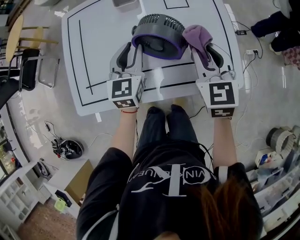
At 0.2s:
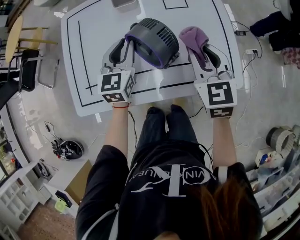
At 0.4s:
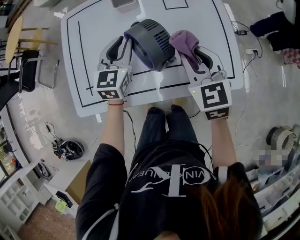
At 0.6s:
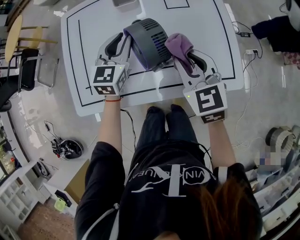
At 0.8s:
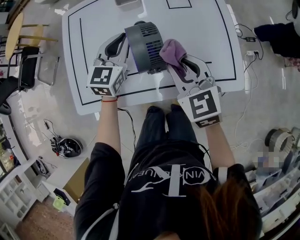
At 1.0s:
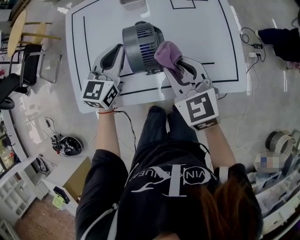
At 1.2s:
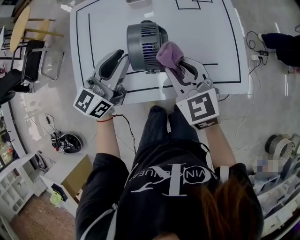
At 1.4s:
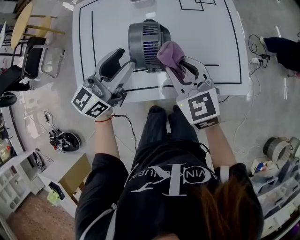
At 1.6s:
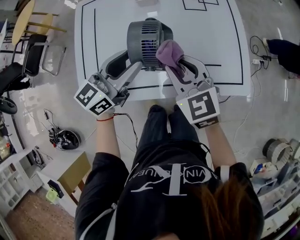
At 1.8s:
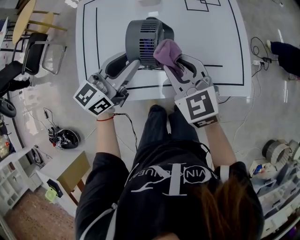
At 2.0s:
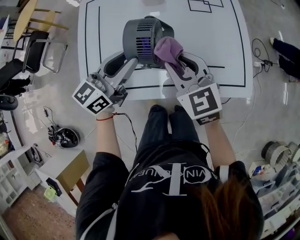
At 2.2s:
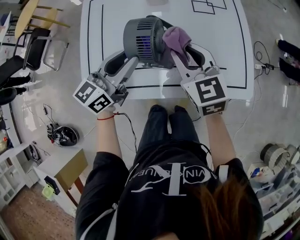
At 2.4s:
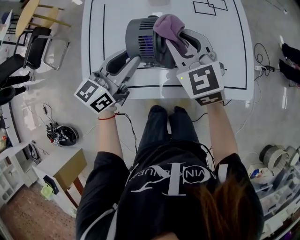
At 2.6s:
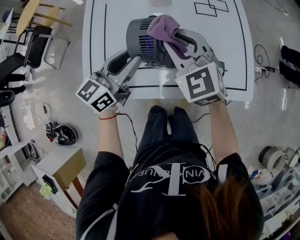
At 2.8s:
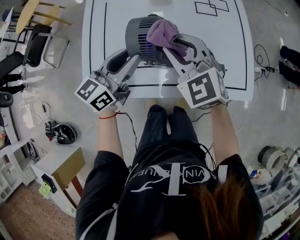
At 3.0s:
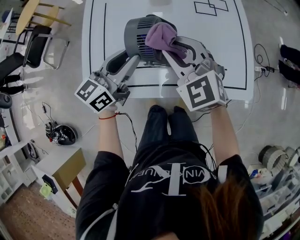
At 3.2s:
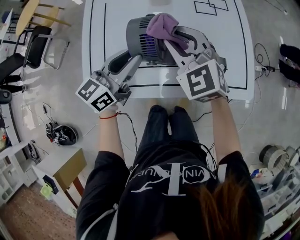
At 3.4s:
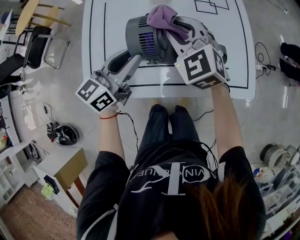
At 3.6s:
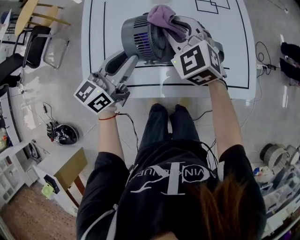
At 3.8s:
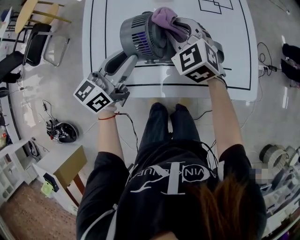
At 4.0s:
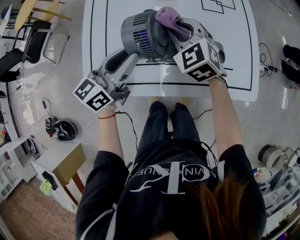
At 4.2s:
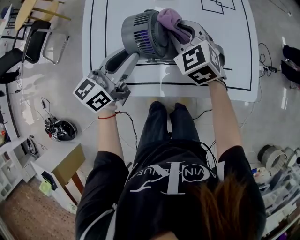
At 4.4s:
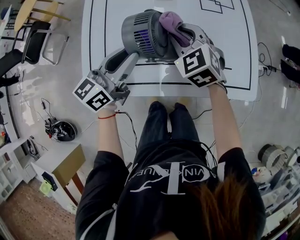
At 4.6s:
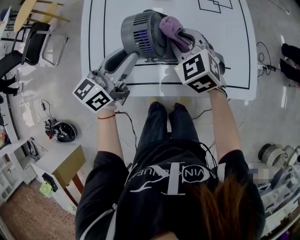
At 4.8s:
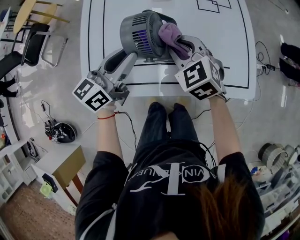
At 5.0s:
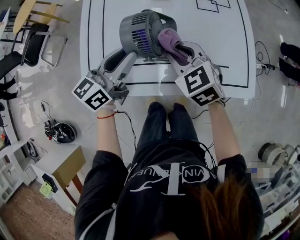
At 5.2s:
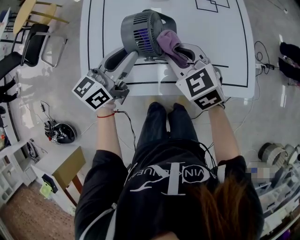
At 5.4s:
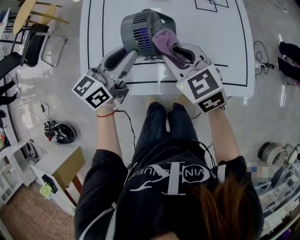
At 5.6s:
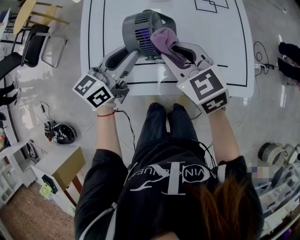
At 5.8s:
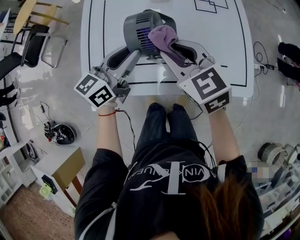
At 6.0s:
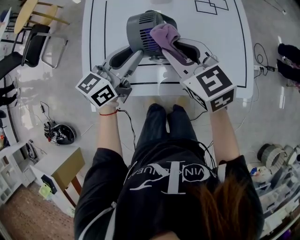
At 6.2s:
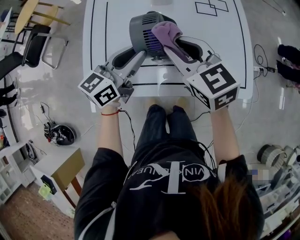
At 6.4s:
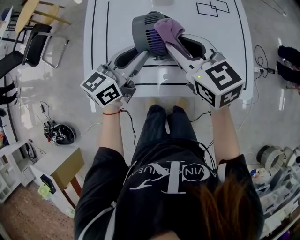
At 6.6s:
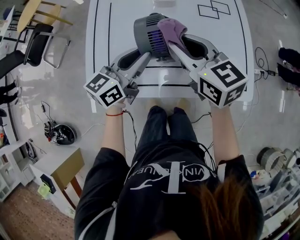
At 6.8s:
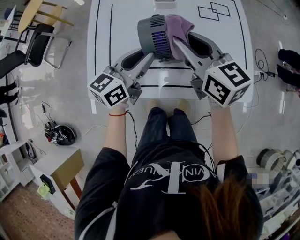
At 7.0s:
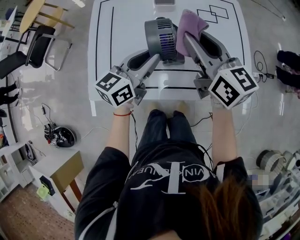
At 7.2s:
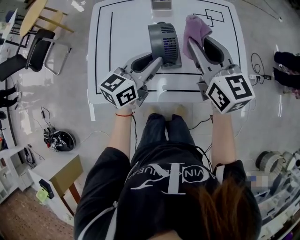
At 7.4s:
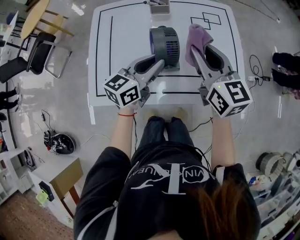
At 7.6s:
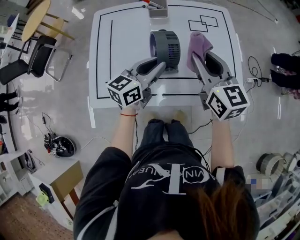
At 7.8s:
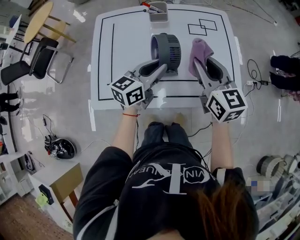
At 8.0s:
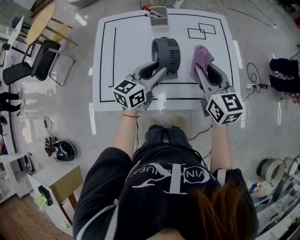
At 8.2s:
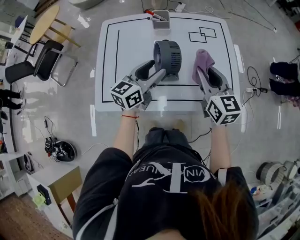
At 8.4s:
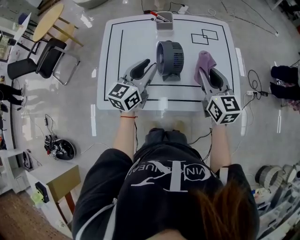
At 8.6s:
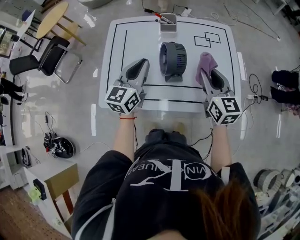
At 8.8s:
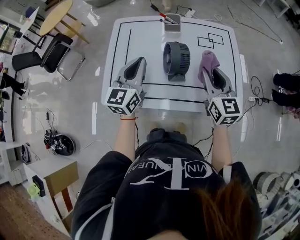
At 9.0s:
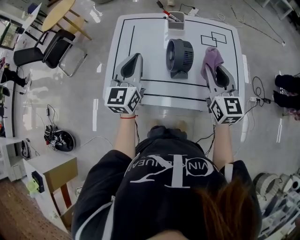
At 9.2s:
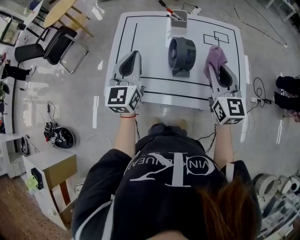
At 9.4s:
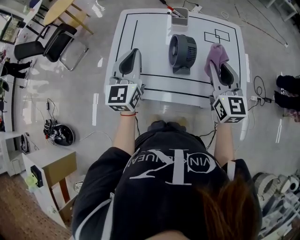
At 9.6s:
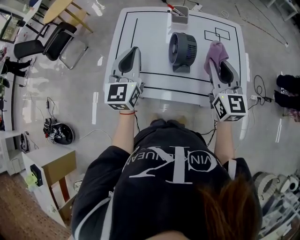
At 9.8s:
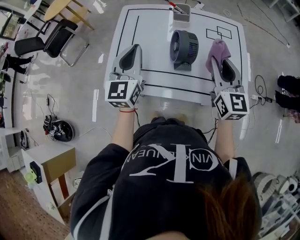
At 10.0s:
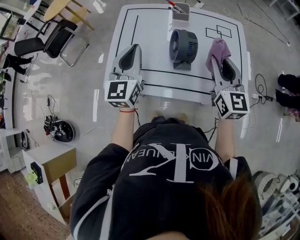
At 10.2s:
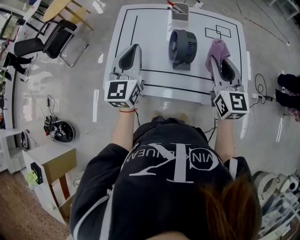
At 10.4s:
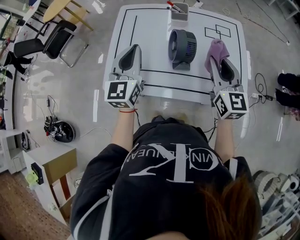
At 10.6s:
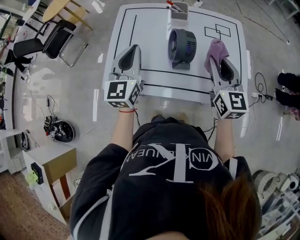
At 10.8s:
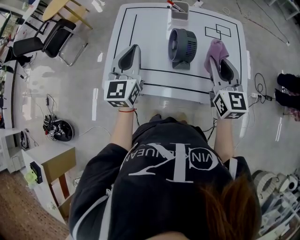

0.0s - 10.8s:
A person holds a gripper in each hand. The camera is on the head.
0.0s - 1.6s: The right gripper moves to the left, roughly 15 cm, and turns by roughly 20 degrees. The left gripper travels backward and upward by some 10 cm, rotates about 40 degrees, and closes, then opens again.
1.6s - 3.0s: The right gripper ends up approximately 5 cm from where it was, and turns by approximately 20 degrees.
3.0s - 4.6s: The right gripper goes approximately 5 cm downward.
4.6s - 6.2s: The right gripper moves upward, roughly 10 cm, and turns by approximately 30 degrees.
6.2s - 7.8s: Both grippers move to the right, some 10 cm. The right gripper rotates approximately 20 degrees.
7.8s - 9.2s: The left gripper goes roughly 20 cm to the left and upward, changes its angle by about 50 degrees, and opens, then closes again.
9.2s - 10.8s: Neither gripper changes place.

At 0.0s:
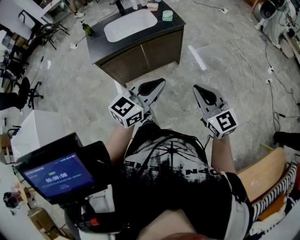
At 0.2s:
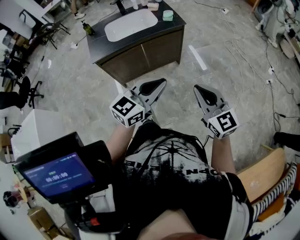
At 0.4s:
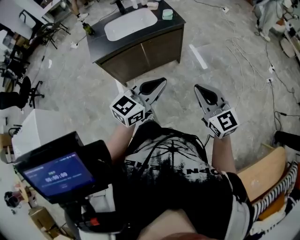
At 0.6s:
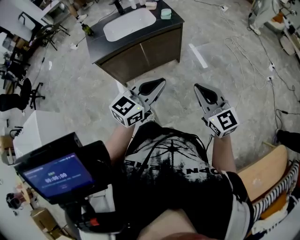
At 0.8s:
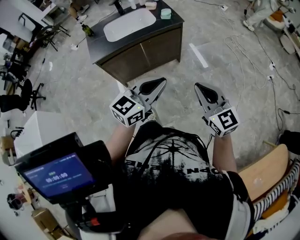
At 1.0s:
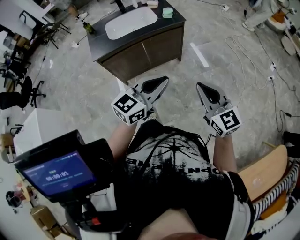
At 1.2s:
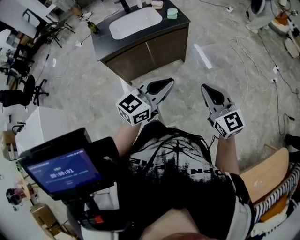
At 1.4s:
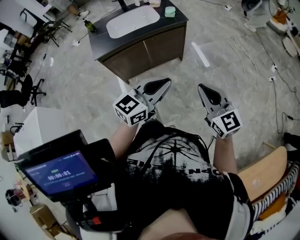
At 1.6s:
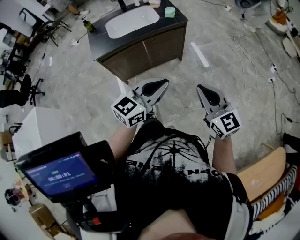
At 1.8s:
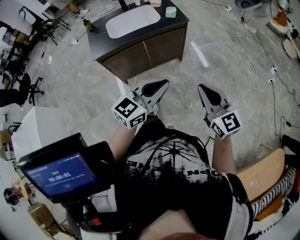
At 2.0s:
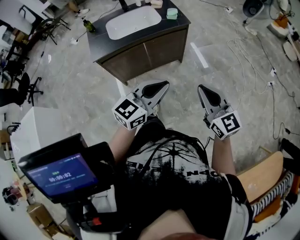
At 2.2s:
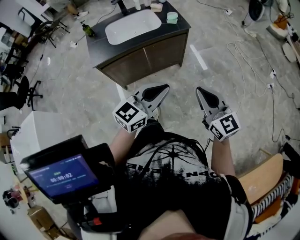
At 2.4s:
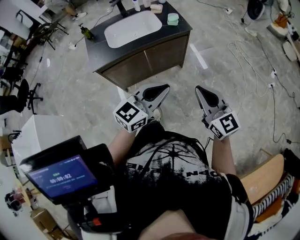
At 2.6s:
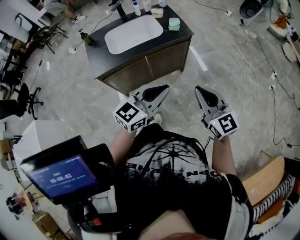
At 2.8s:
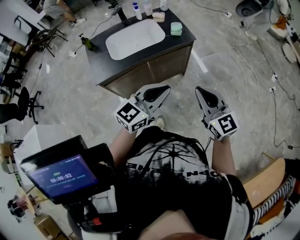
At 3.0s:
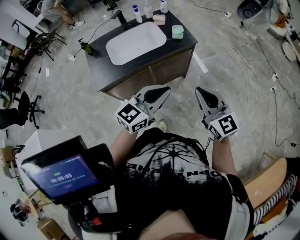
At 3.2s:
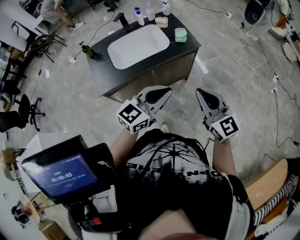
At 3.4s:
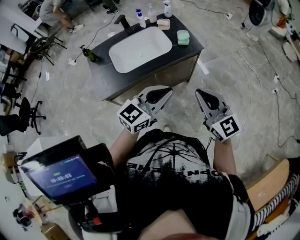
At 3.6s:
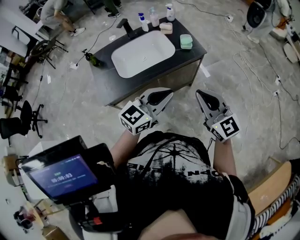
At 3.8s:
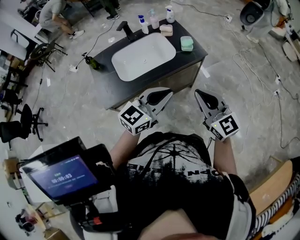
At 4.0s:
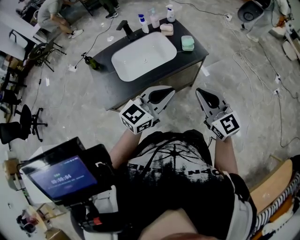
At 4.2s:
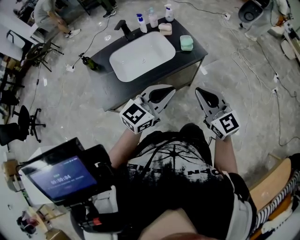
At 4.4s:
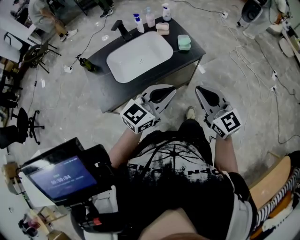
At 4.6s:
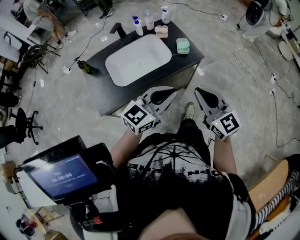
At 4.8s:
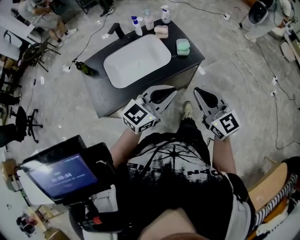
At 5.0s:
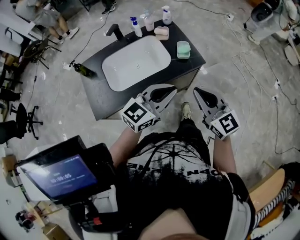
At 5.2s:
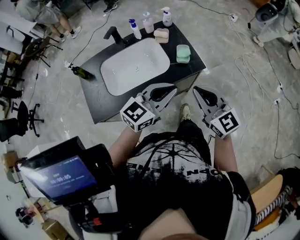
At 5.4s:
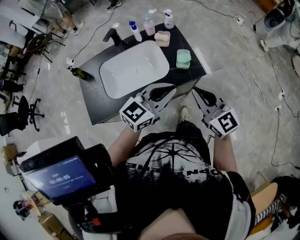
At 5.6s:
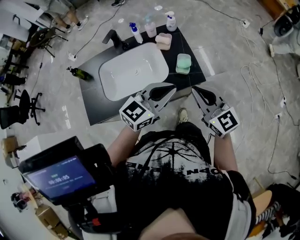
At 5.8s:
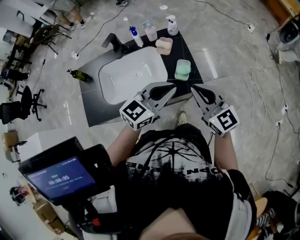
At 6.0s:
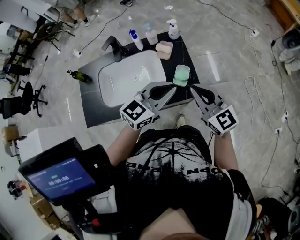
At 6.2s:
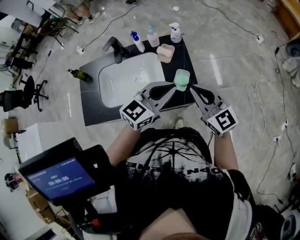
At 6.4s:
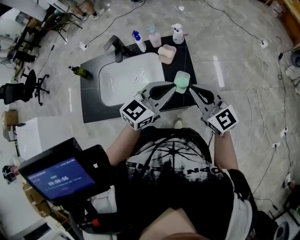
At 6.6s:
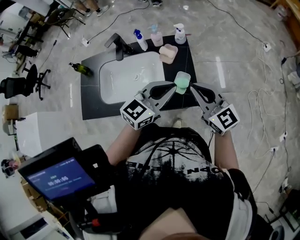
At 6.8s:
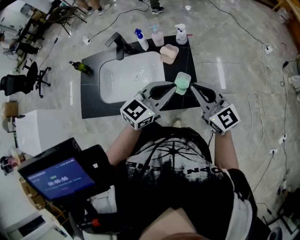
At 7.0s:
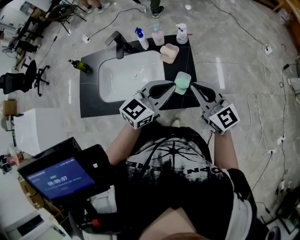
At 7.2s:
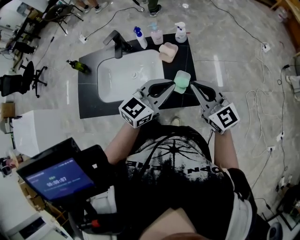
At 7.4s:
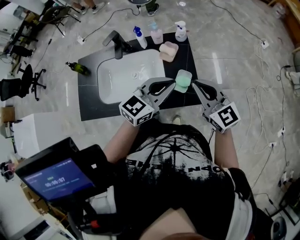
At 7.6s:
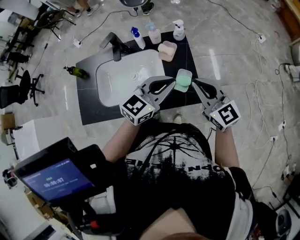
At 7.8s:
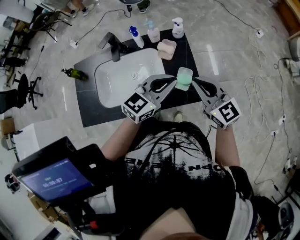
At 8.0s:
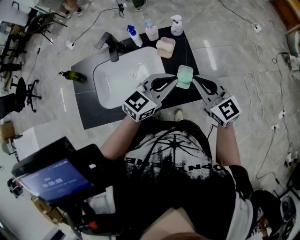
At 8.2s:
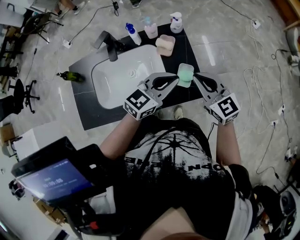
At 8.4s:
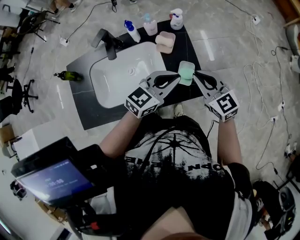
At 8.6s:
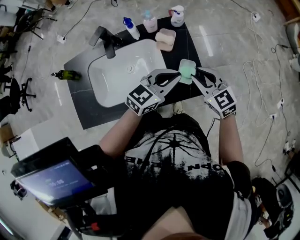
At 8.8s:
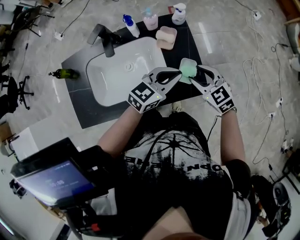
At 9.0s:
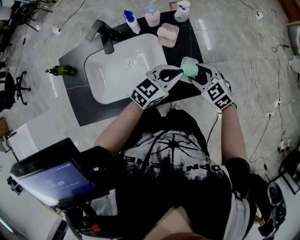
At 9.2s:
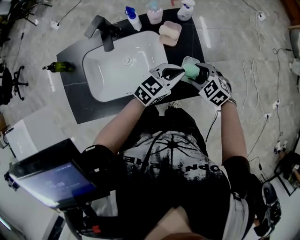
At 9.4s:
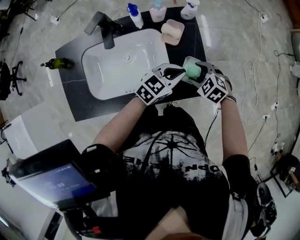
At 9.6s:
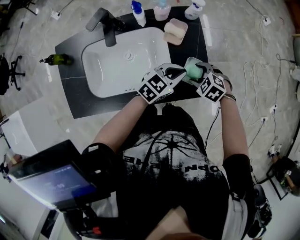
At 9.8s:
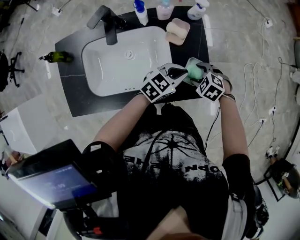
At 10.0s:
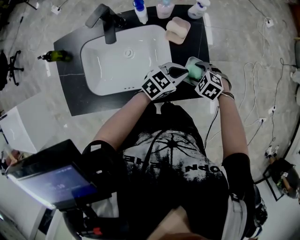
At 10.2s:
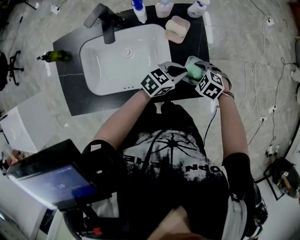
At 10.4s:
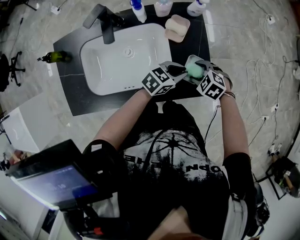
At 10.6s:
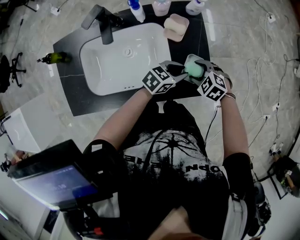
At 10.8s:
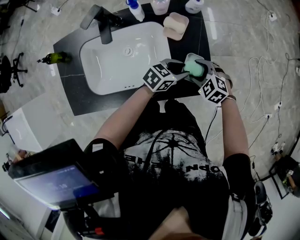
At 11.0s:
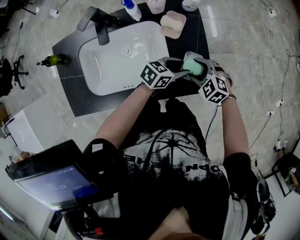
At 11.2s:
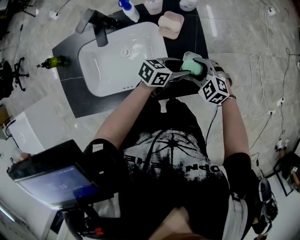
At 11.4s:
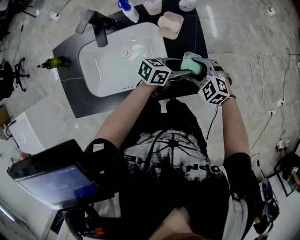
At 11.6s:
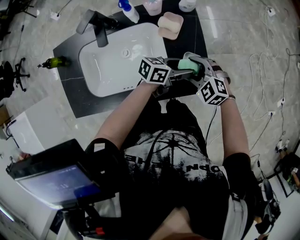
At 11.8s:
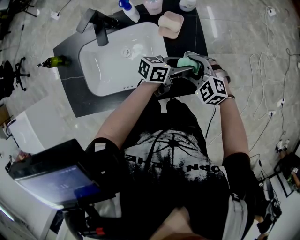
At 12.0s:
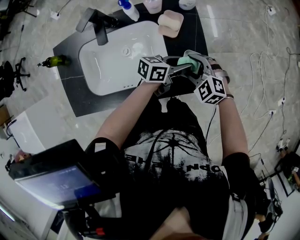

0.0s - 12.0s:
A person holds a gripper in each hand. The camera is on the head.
0.0s - 1.6s: There are only small adjustments of the grippers.
1.6s - 3.0s: The two grippers go some 20 cm forward and to the left.
3.0s - 4.4s: Both grippers travel together forward and to the left, approximately 15 cm.
4.4s - 6.0s: Both grippers move forward, about 30 cm.
6.0s - 7.6s: Both grippers travel together forward, some 5 cm.
7.6s - 9.0s: Both grippers move downward, about 15 cm. The right gripper tips its fingers downward by roughly 40 degrees, and opens its fingers.
9.0s - 10.4s: Both grippers travel together downward, roughly 10 cm. The right gripper turns by about 30 degrees.
10.4s - 12.0s: The right gripper shifts by some 5 cm, and swivels some 20 degrees. The left gripper rotates approximately 30 degrees, and opens, then closes once more.

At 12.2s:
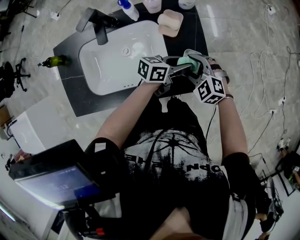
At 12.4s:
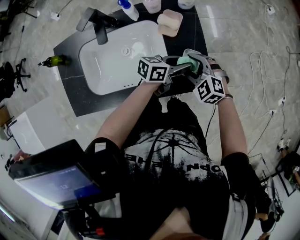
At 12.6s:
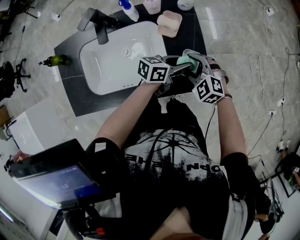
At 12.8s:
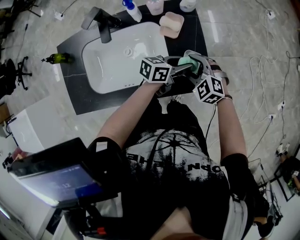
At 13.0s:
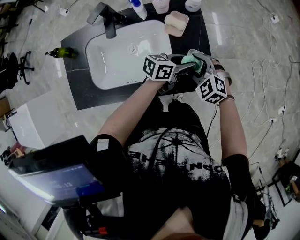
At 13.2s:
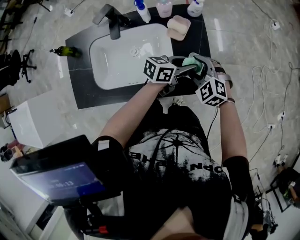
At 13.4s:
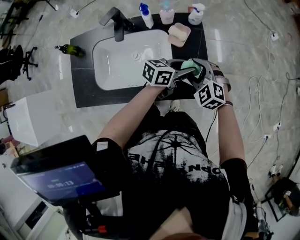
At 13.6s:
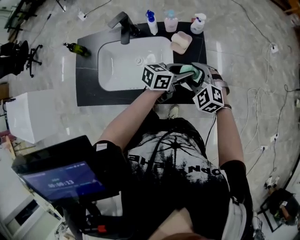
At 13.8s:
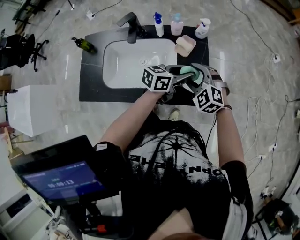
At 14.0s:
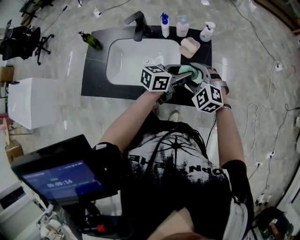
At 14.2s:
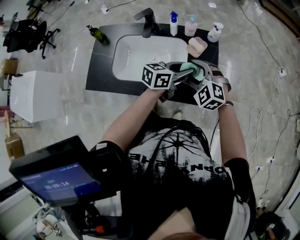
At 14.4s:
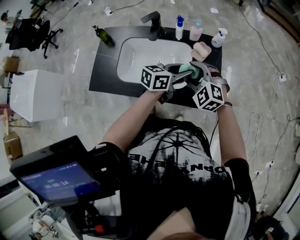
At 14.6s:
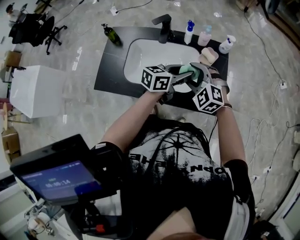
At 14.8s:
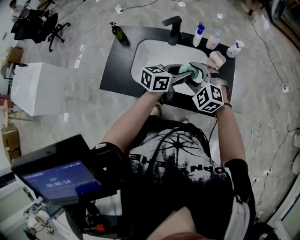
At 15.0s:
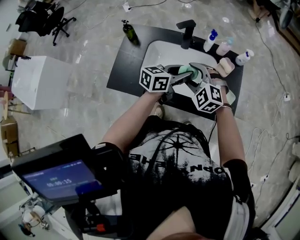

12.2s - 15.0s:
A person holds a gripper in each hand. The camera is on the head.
12.2s - 13.6s: The grippers both shift upward by about 10 cm.
13.6s - 15.0s: Both grippers move to the left, approximately 25 cm. The left gripper swivels some 20 degrees. The right gripper turns by some 20 degrees.
